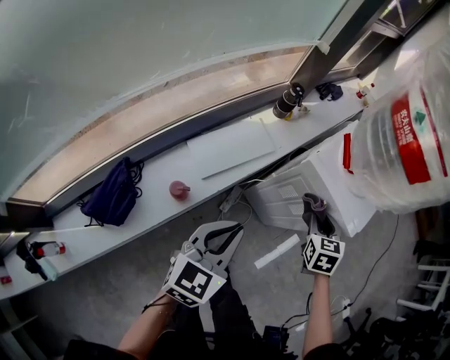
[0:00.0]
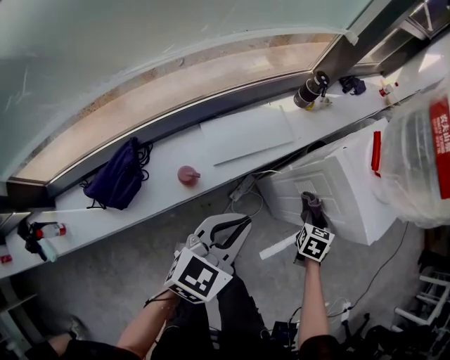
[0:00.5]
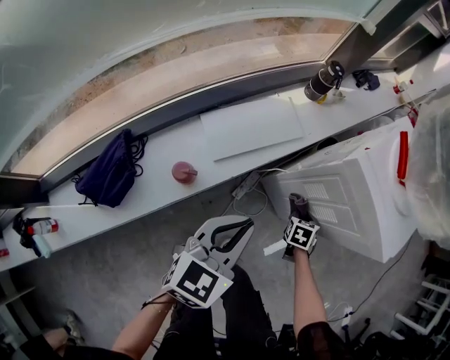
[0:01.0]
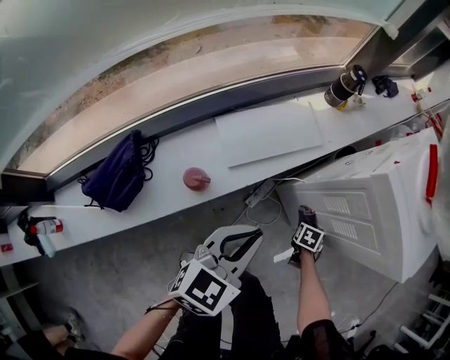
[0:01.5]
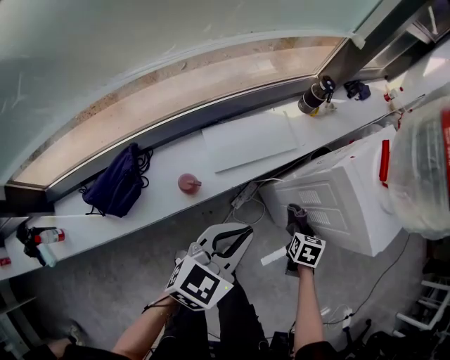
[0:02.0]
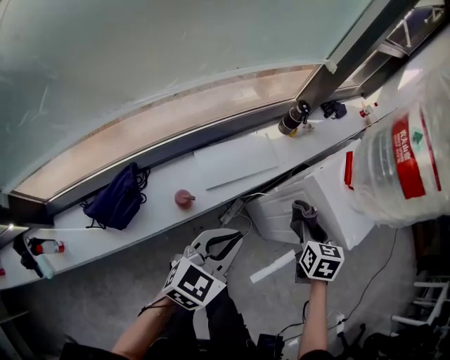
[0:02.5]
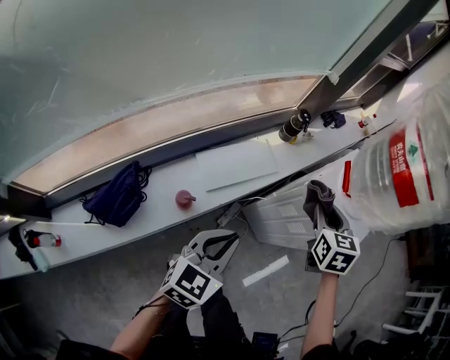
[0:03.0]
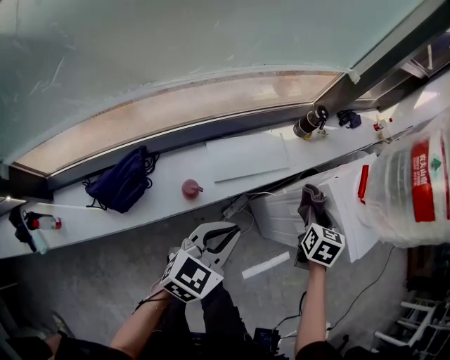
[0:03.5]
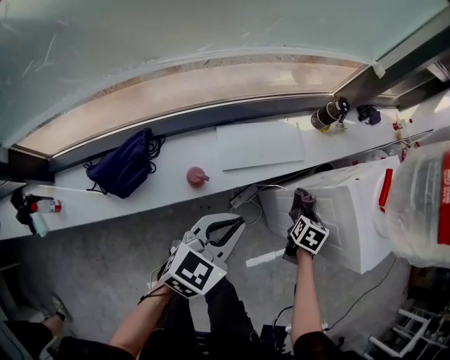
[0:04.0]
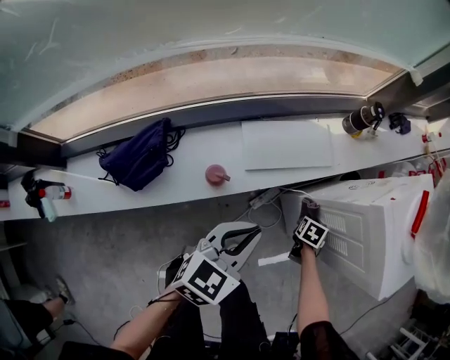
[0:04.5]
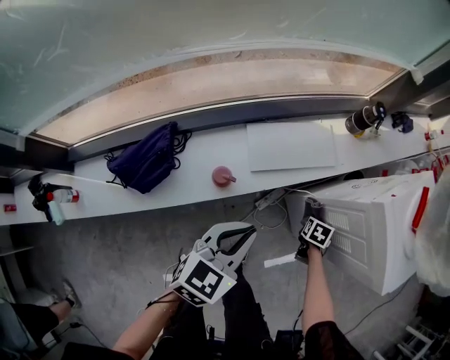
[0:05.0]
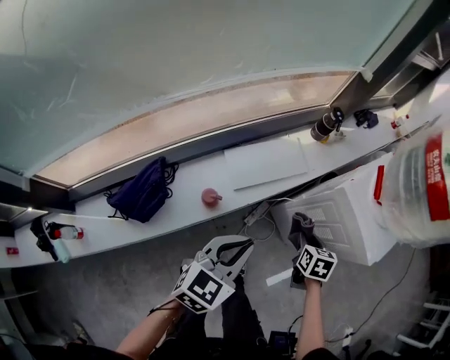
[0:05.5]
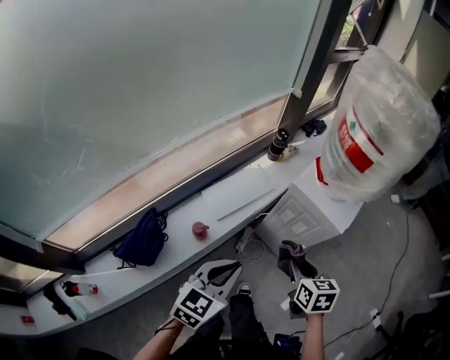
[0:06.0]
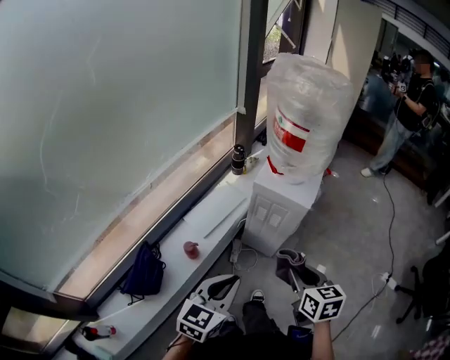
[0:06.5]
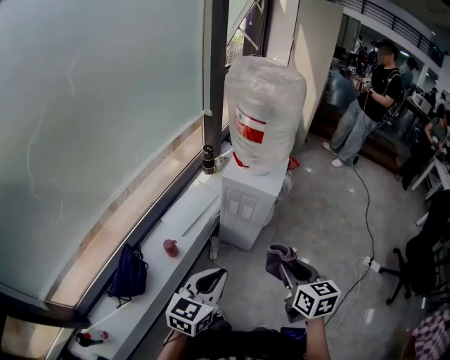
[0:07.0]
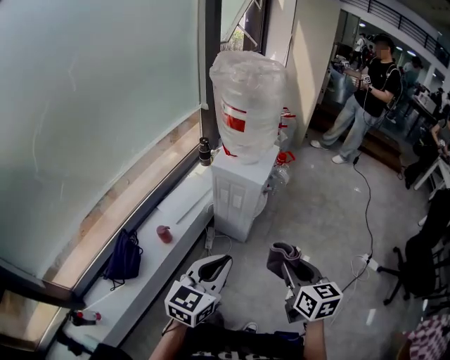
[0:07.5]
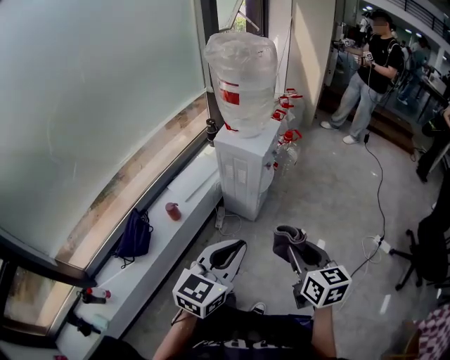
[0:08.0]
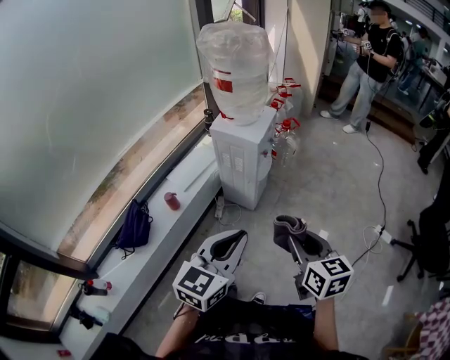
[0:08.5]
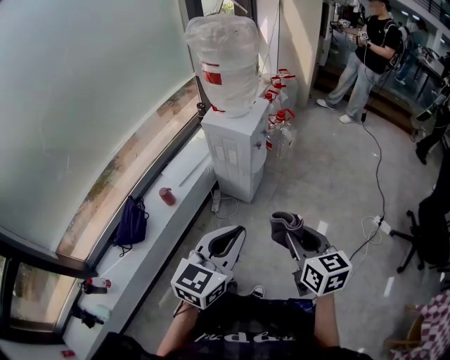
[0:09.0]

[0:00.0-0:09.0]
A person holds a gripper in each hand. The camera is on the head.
0:00.0 to 0:02.0: The left gripper is displaced downward by some 5 cm. The right gripper heads downward, covering approximately 20 cm.
0:02.0 to 0:04.5: The right gripper moves forward and to the left, approximately 10 cm, and goes upward and returns, about 30 cm each way, while the left gripper ends up about 5 cm from where it was.
0:04.5 to 0:07.0: The right gripper goes some 70 cm upward and backward, and points its fingers about 40 degrees further upward. Meanwhile the left gripper shifts some 40 cm upward, backward and to the right, and changes its angle by about 30 degrees.
0:07.0 to 0:09.0: Both grippers move to the right and backward, roughly 25 cm.

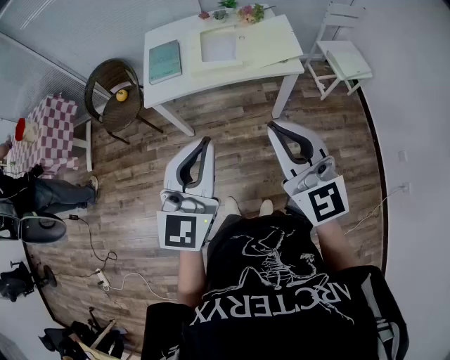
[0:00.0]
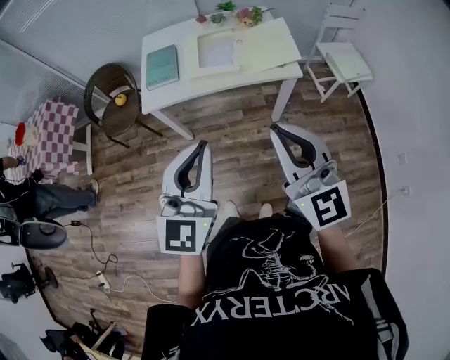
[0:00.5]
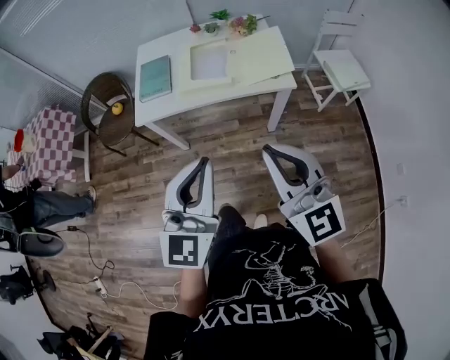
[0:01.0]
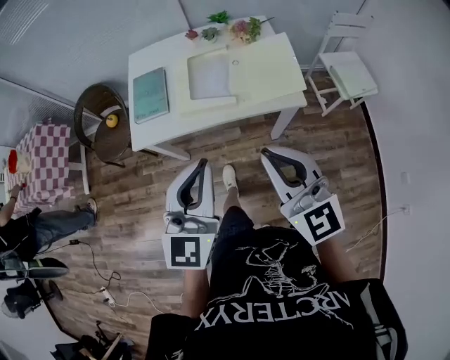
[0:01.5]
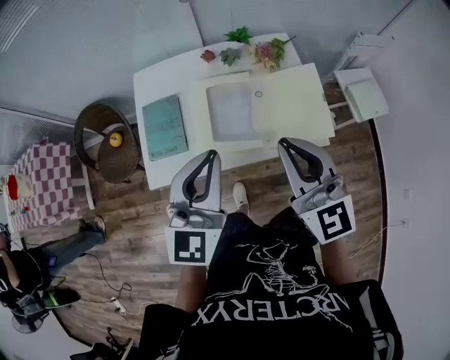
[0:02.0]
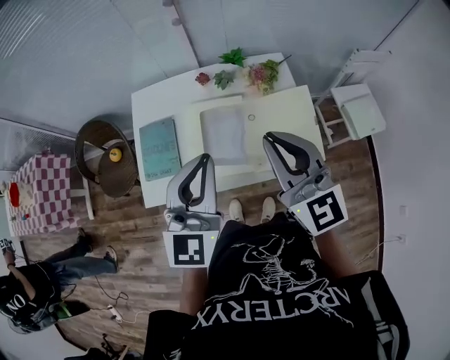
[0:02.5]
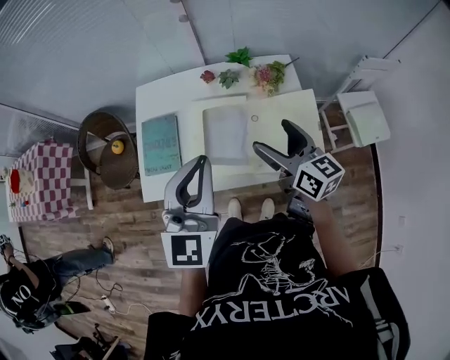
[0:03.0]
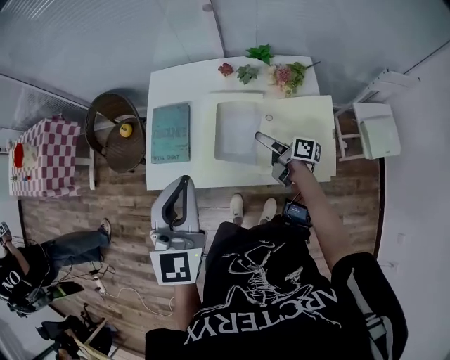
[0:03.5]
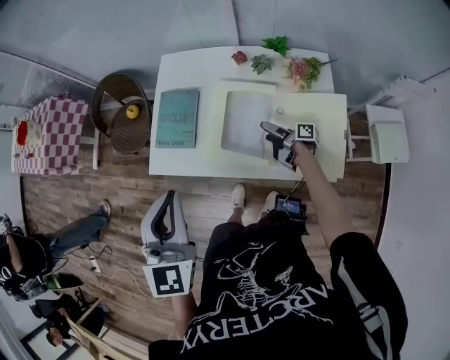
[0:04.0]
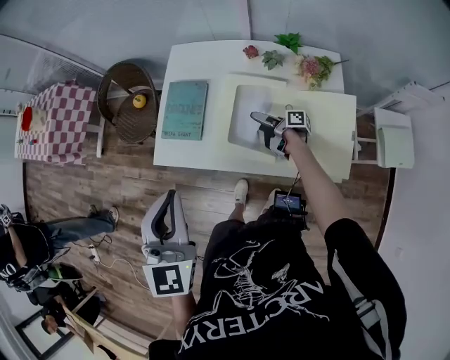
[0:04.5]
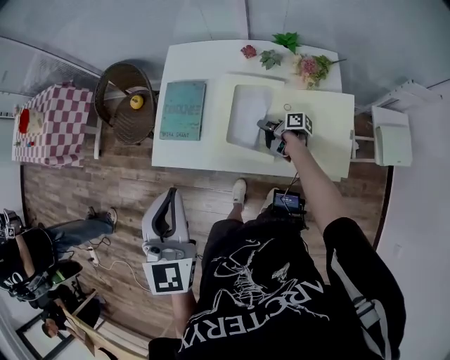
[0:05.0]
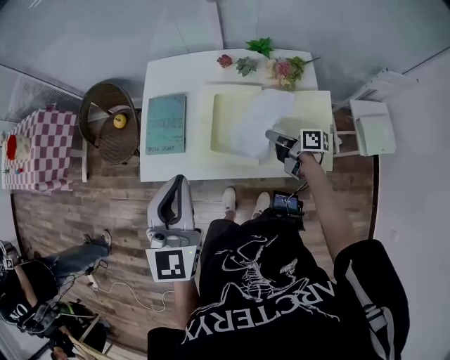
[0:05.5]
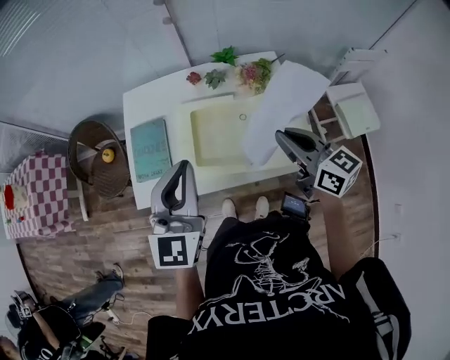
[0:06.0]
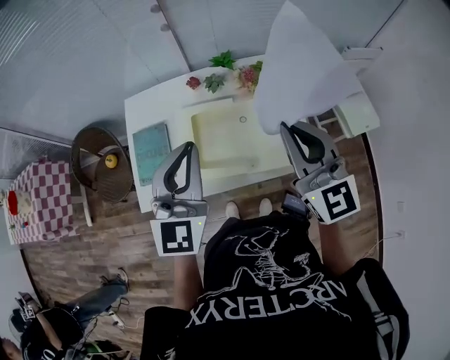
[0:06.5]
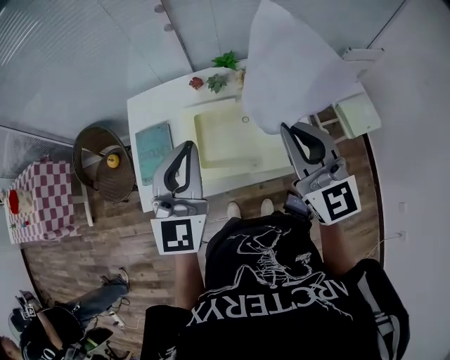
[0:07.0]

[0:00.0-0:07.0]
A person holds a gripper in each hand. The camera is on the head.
0:00.0 to 0:02.0: Both grippers move forward, some 40 cm.
0:02.0 to 0:03.5: The left gripper swivels approximately 20 degrees; the right gripper heads downward and forward, covering roughly 35 cm, twists roughly 80 degrees clockwise, seen from behind, and opens its fingers.
0:03.5 to 0:05.0: The right gripper heads downward and forward, covering some 15 cm, swivels some 20 degrees, and closes. Meanwhile the left gripper heads to the left, covering some 5 cm.
0:05.0 to 0:07.0: The left gripper shifts by some 15 cm, and turns by some 30 degrees. The right gripper heads upward, covering roughly 50 cm, and rolls counterclockwise, seen from behind, by roughly 90 degrees.

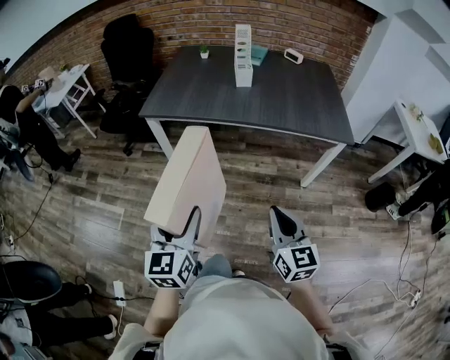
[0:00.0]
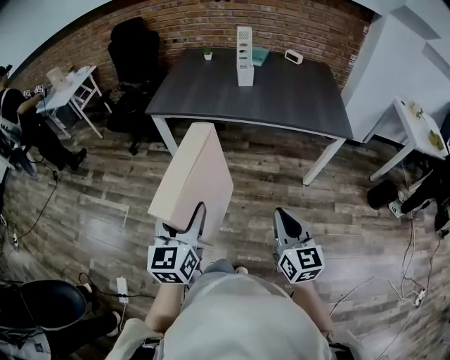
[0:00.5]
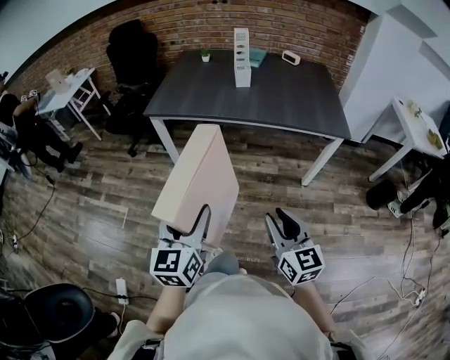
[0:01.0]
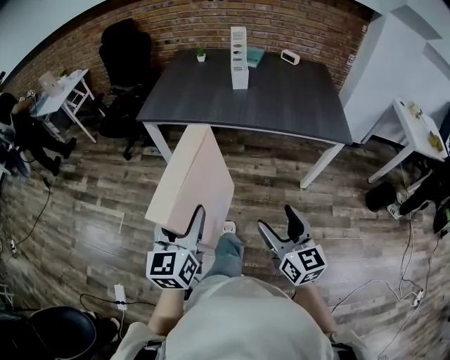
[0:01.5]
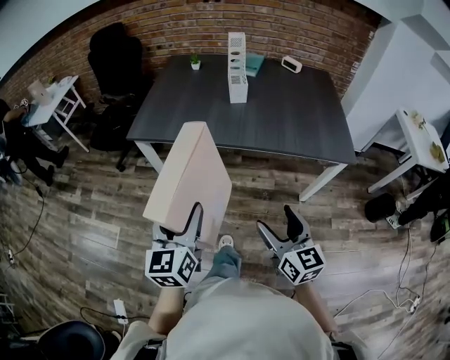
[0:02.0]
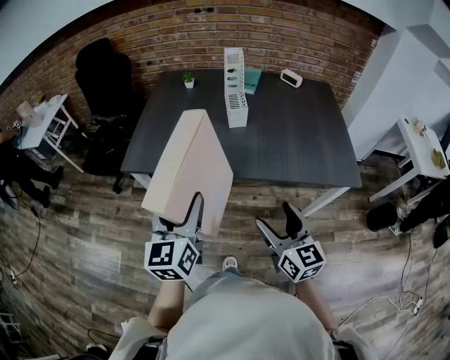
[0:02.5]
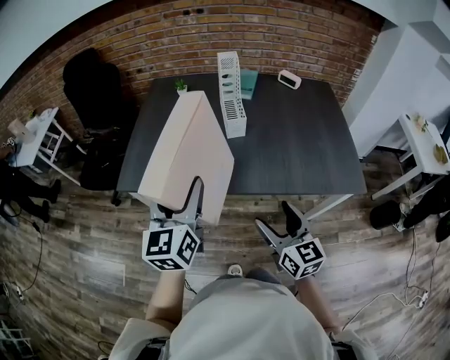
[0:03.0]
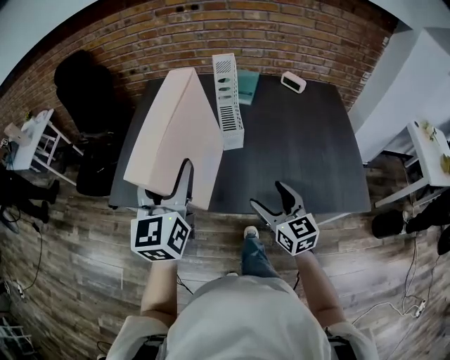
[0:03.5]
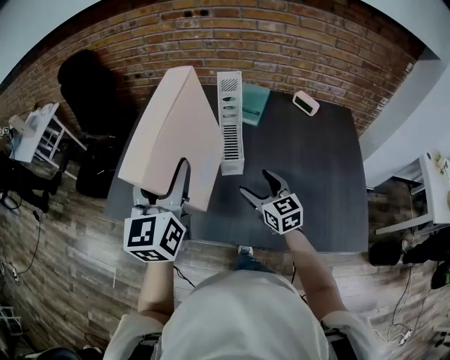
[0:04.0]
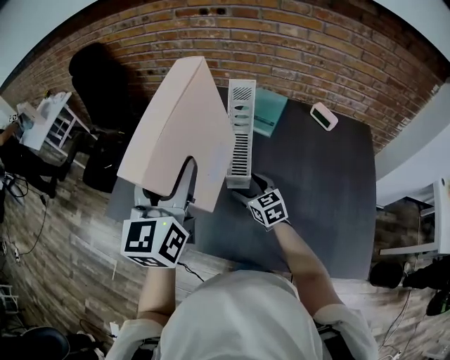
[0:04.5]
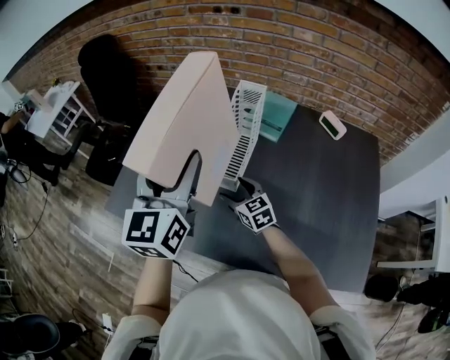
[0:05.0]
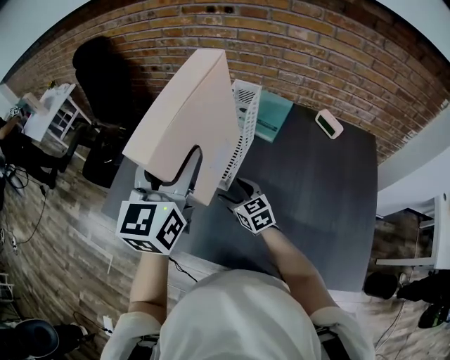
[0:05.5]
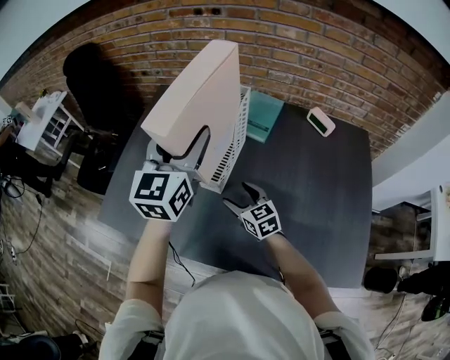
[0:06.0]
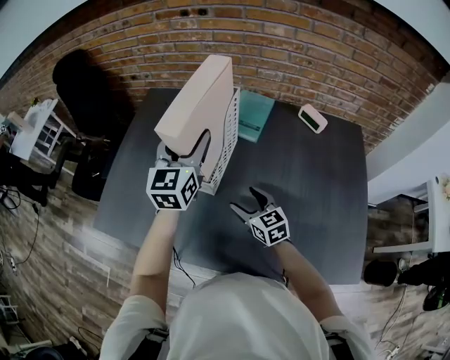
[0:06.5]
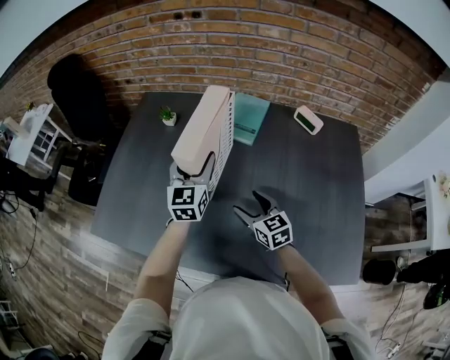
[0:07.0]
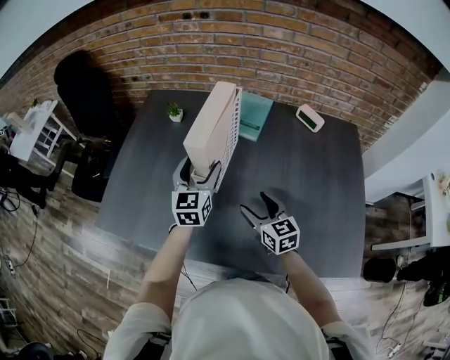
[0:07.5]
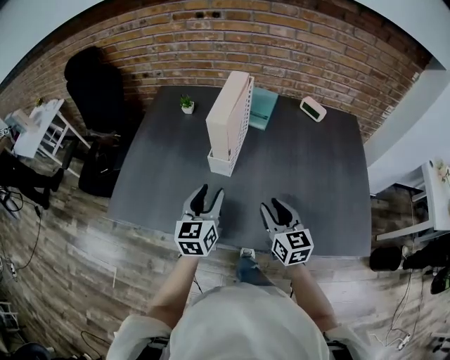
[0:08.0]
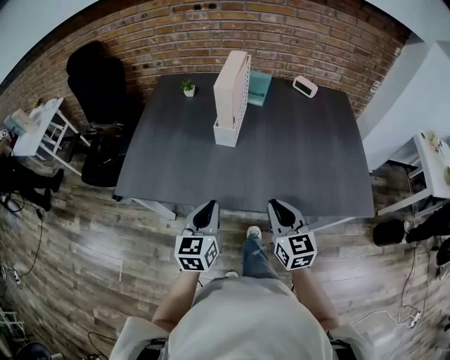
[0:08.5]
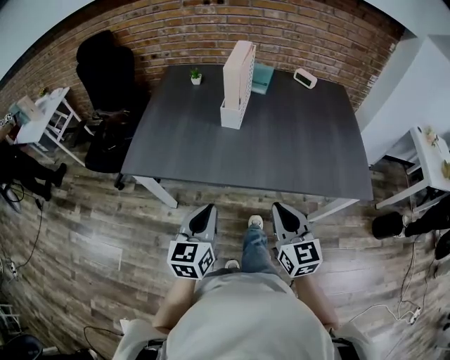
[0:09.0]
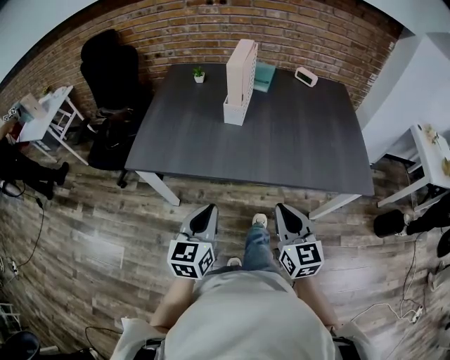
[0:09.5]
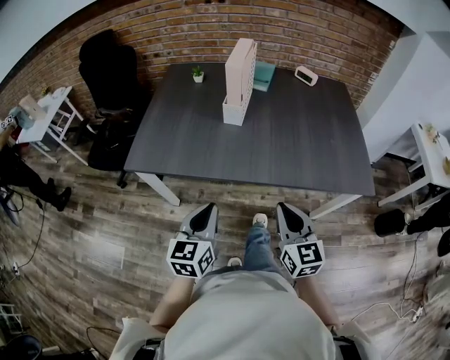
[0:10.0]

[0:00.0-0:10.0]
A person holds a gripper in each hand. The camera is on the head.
0:00.0 to 0:02.0: The grippers both shift forward by about 15 cm. The right gripper opens.
0:02.0 to 0:04.0: Both grippers are carried forward, about 50 cm.
0:04.0 to 0:06.0: The left gripper travels forward and to the right by approximately 15 cm; the right gripper is displaced forward and downward by some 10 cm.
0:06.0 to 0:08.0: The right gripper travels backward and upward by about 15 cm, turns by approximately 30 degrees, and closes up, while the left gripper is displaced downward and backward by approximately 25 cm.
0:08.0 to 0:10.0: The two grippers go roughly 30 cm backward. The left gripper closes its fingers, while the right gripper closes.
